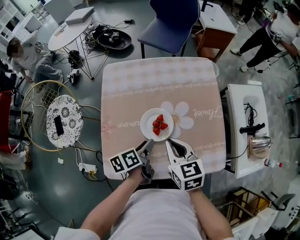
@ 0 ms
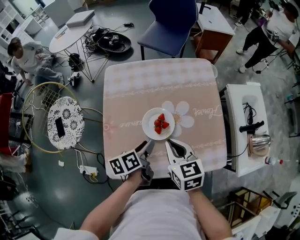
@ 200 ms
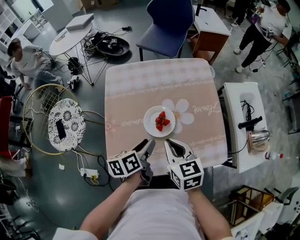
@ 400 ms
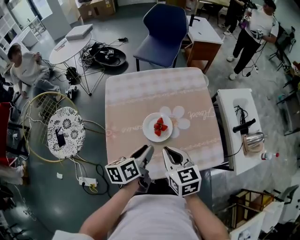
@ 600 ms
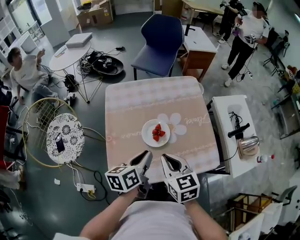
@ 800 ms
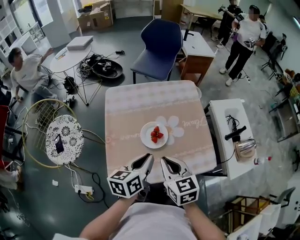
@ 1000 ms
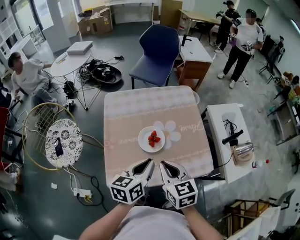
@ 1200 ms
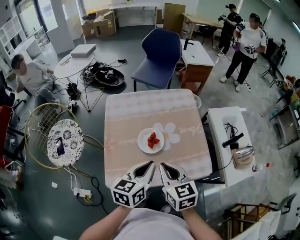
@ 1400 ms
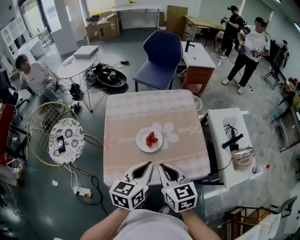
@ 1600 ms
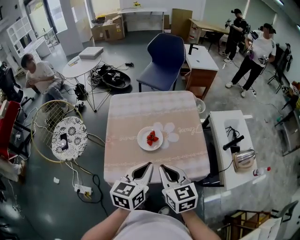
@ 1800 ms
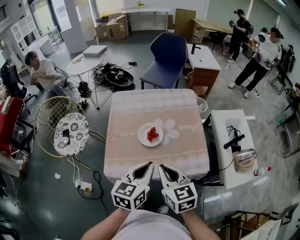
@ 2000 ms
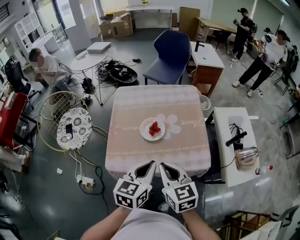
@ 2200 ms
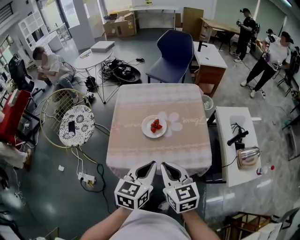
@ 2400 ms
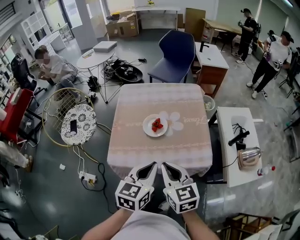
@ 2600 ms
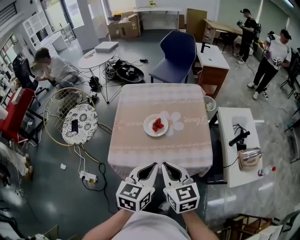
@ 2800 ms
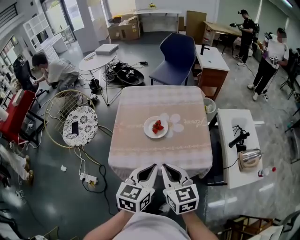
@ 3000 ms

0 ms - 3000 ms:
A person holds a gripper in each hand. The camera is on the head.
0 ms - 1600 ms: The right gripper shifts by approximately 15 cm.
1600 ms - 3000 ms: The right gripper moves roughly 10 cm.

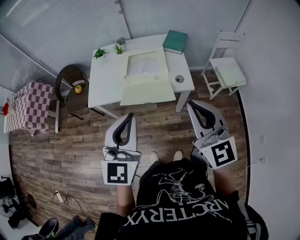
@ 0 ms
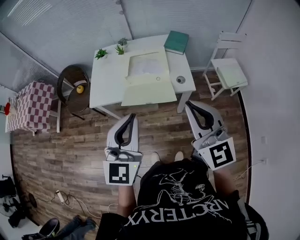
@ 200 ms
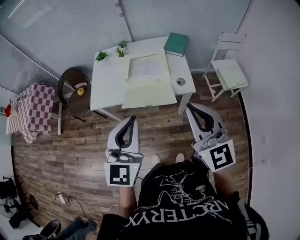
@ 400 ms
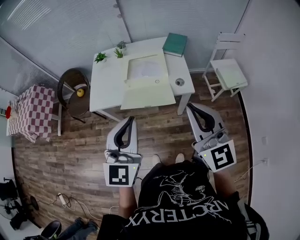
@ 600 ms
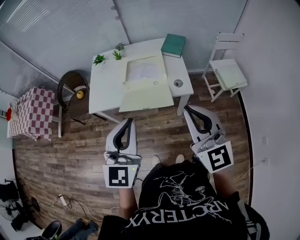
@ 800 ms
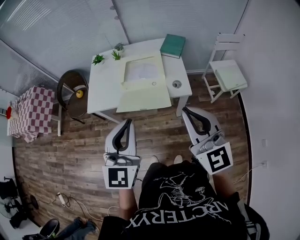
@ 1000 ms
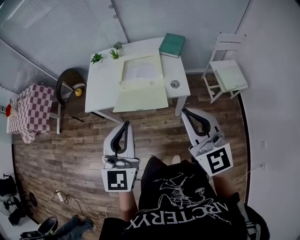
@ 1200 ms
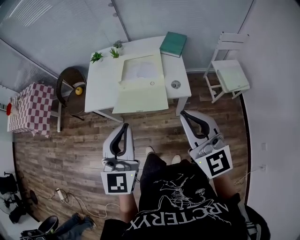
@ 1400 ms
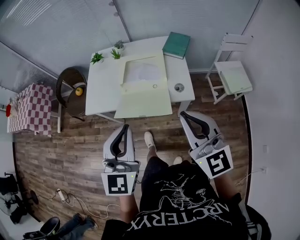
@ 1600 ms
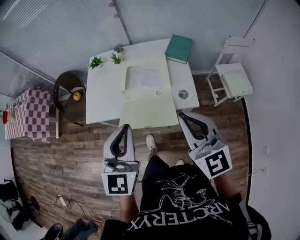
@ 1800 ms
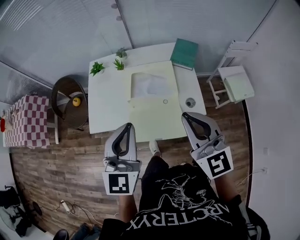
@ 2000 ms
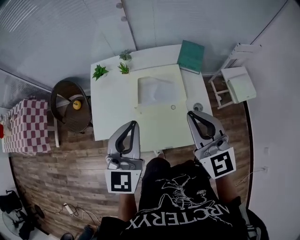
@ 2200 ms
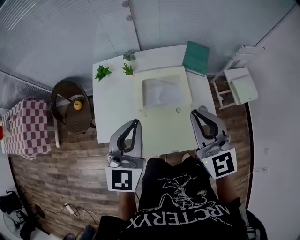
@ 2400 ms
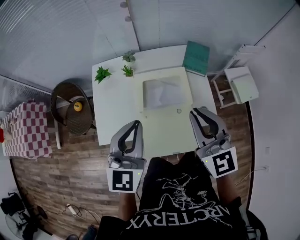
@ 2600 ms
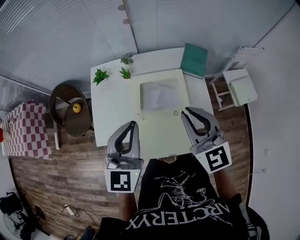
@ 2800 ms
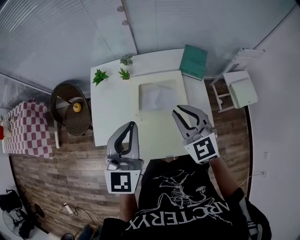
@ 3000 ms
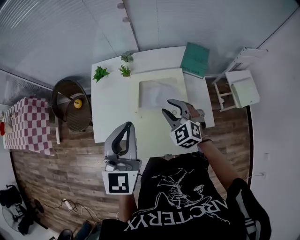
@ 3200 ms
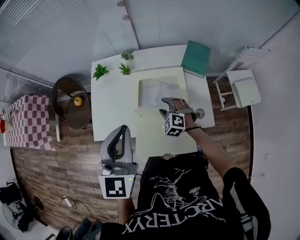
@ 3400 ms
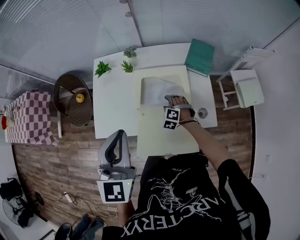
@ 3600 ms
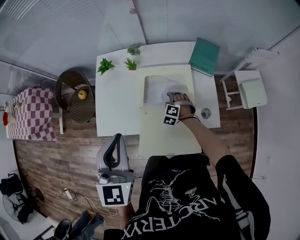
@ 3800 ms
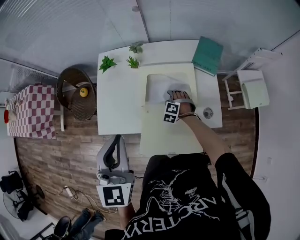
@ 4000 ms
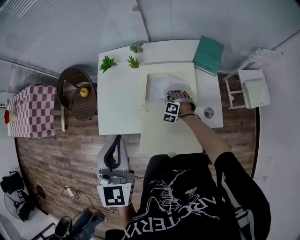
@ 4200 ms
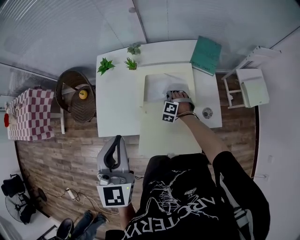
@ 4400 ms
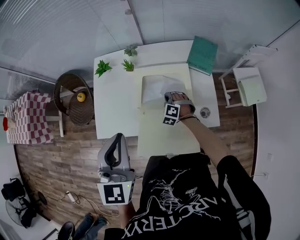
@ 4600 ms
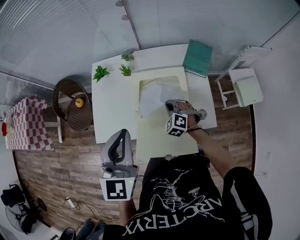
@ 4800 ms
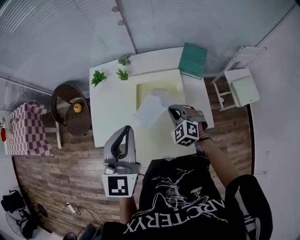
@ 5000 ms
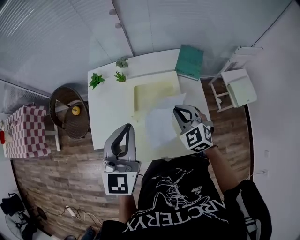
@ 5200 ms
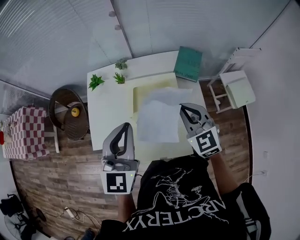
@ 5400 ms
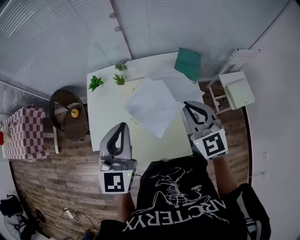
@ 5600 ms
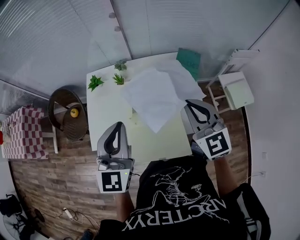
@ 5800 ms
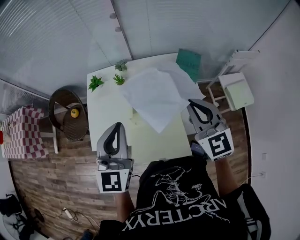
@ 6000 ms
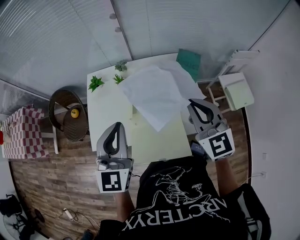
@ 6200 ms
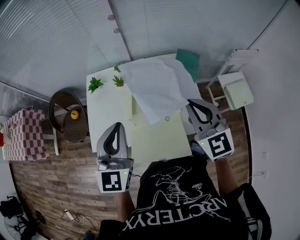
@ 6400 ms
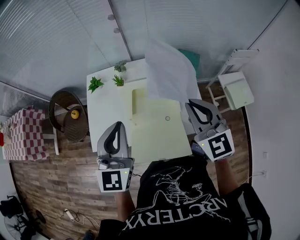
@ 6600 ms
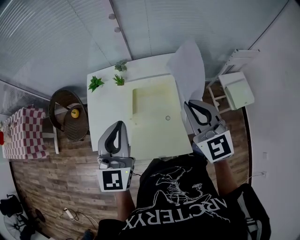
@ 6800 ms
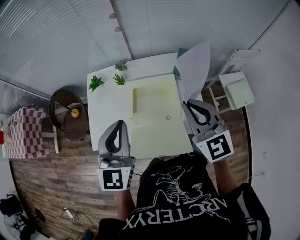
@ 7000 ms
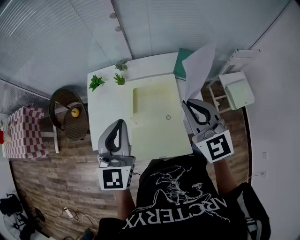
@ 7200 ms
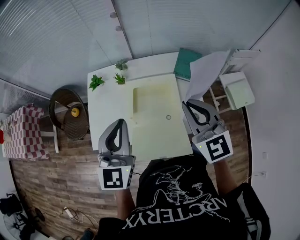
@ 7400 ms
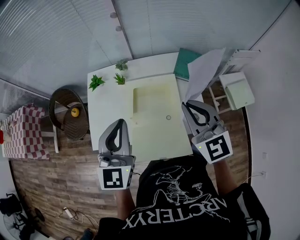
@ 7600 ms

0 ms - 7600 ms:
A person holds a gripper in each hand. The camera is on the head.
0 ms - 1600 ms: The left gripper ends up about 5 cm from where it was. The right gripper shifts roughly 5 cm forward.
1600 ms - 3000 ms: The left gripper goes some 25 cm forward. The right gripper heads forward and to the left, covering approximately 30 cm, and swivels some 20 degrees.
3000 ms - 4600 ms: The right gripper heads downward, covering approximately 30 cm, tips its fingers downward by approximately 30 degrees, and opens, then closes once more.
4600 ms - 6000 ms: The right gripper is displaced upward by some 35 cm, and points its fingers approximately 40 degrees further upward.
6000 ms - 7600 ms: The grippers make only small movements.

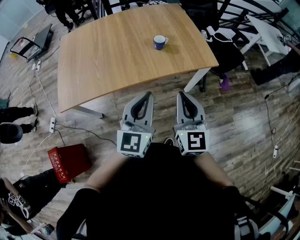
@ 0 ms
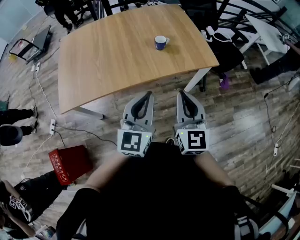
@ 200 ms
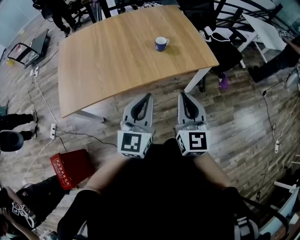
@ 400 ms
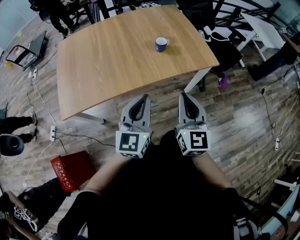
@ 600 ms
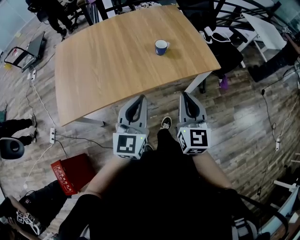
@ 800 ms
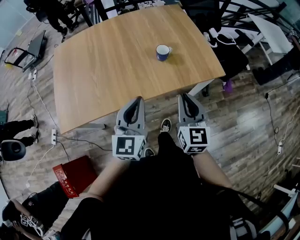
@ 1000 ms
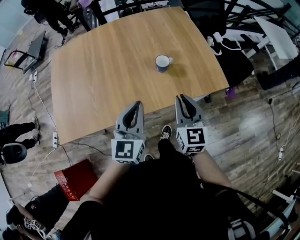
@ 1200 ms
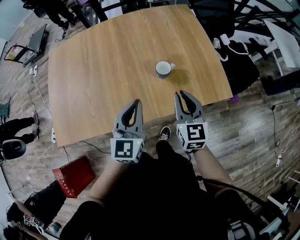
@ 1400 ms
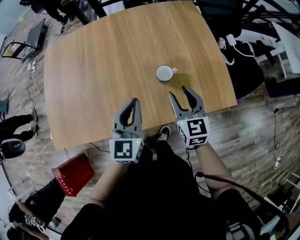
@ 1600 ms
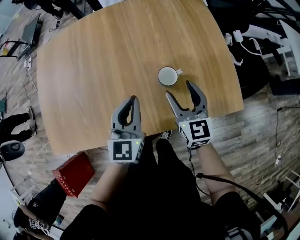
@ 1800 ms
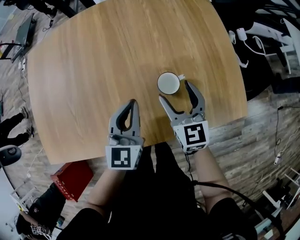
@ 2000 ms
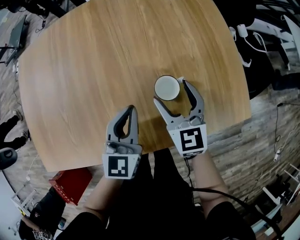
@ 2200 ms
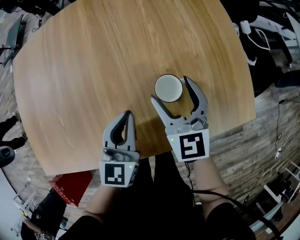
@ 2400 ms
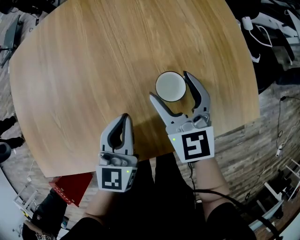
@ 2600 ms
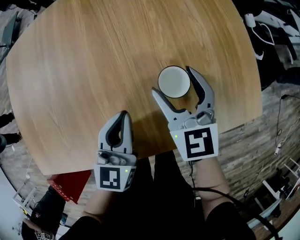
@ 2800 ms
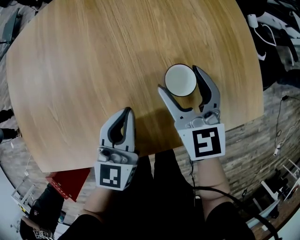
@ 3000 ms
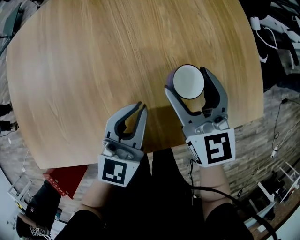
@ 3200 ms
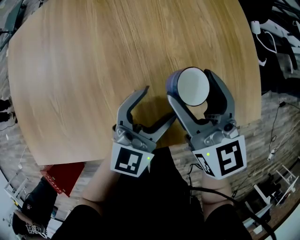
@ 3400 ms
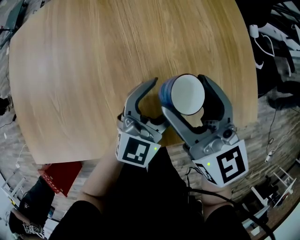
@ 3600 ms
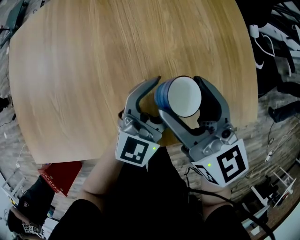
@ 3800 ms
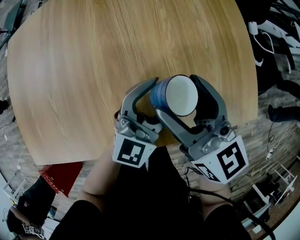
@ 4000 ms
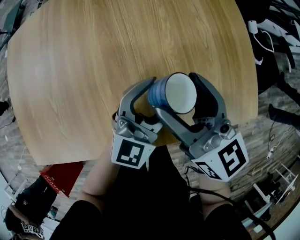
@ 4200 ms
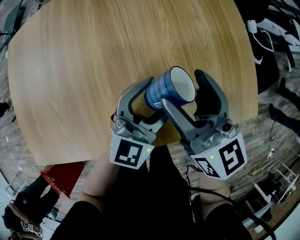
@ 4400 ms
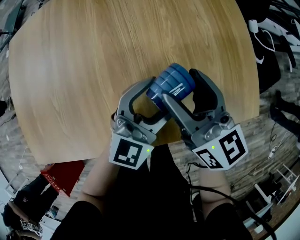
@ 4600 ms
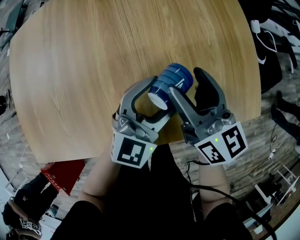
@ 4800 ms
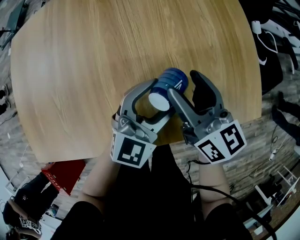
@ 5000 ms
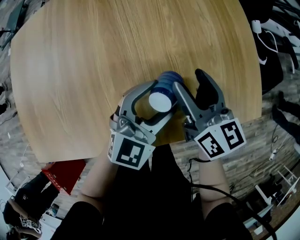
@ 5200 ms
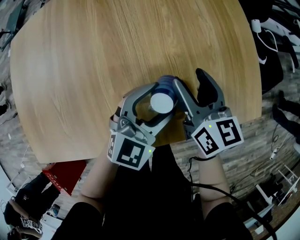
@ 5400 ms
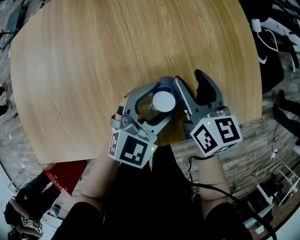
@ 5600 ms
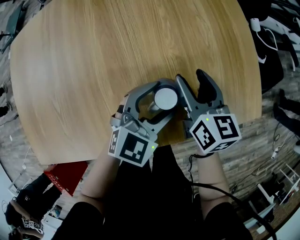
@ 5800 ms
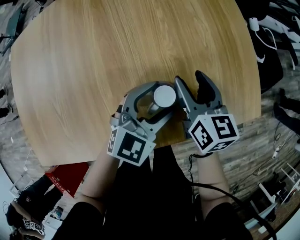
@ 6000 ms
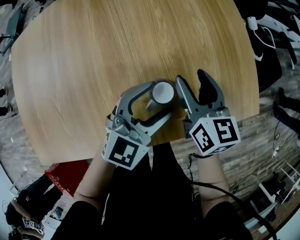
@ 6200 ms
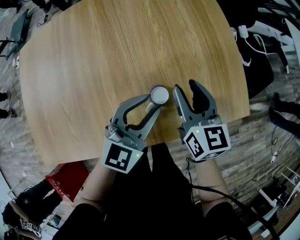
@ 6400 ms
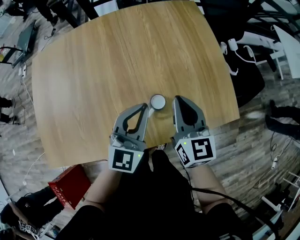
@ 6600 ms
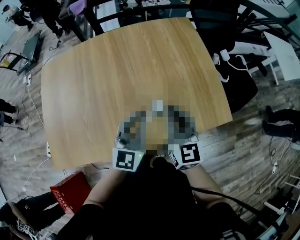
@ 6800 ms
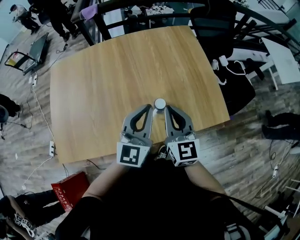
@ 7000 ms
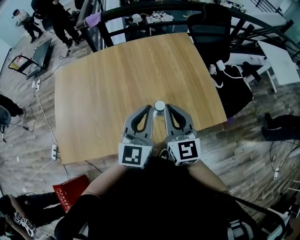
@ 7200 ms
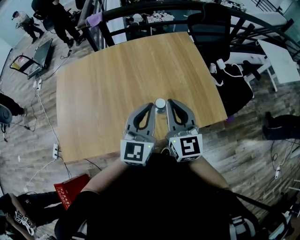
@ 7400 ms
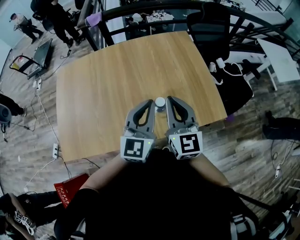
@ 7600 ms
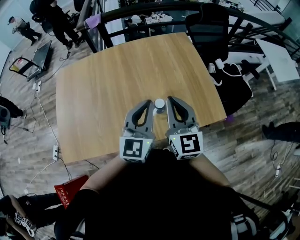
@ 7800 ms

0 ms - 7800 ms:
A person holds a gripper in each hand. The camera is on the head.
0 ms - 1600 ms: The left gripper travels forward by some 35 cm, while the right gripper goes about 40 cm forward and downward, rotates roughly 20 degrees, and opens.
1600 ms - 3200 ms: The right gripper heads forward and downward, covering approximately 15 cm, and opens; the left gripper heads downward and forward, covering some 20 cm.
3200 ms - 4600 ms: The right gripper heads upward, covering approximately 5 cm, and turns by about 20 degrees. Meanwhile the left gripper changes place by roughly 5 cm, and opens its fingers.
4600 ms - 6200 ms: The right gripper moves downward and to the right, approximately 10 cm.
6200 ms - 7800 ms: The right gripper is displaced upward and backward by some 35 cm, turns by roughly 30 degrees, and closes its fingers. Meanwhile the left gripper travels upward by about 30 cm, turns by about 30 degrees, and closes its fingers.

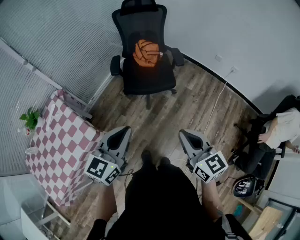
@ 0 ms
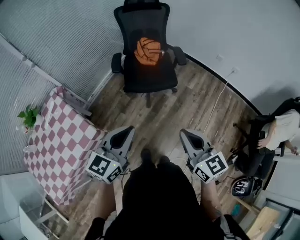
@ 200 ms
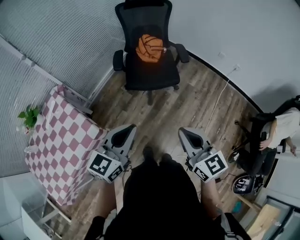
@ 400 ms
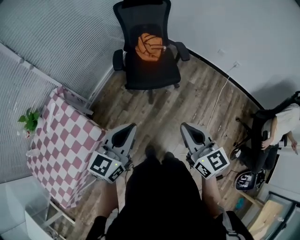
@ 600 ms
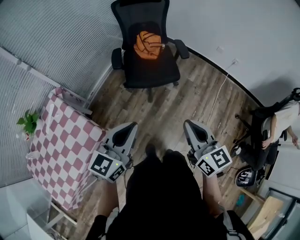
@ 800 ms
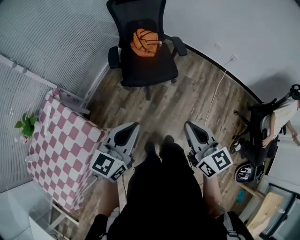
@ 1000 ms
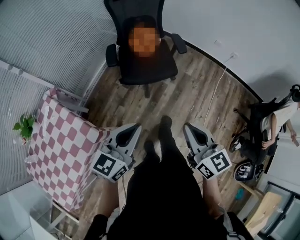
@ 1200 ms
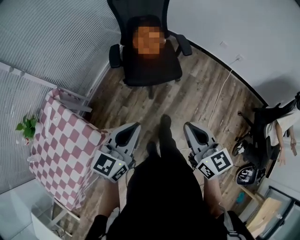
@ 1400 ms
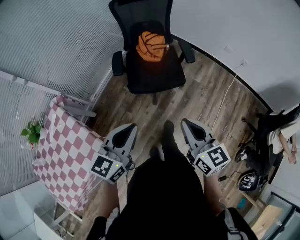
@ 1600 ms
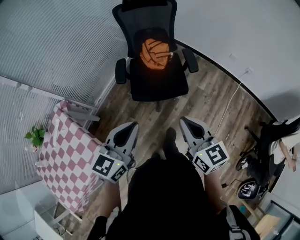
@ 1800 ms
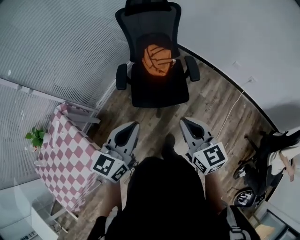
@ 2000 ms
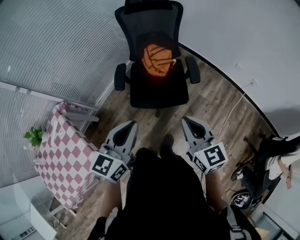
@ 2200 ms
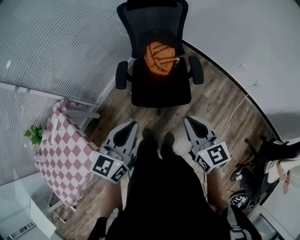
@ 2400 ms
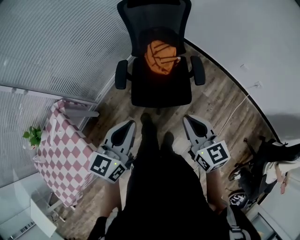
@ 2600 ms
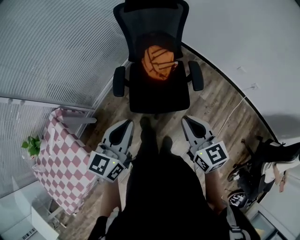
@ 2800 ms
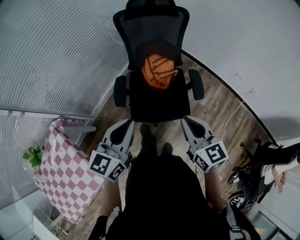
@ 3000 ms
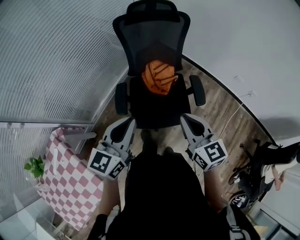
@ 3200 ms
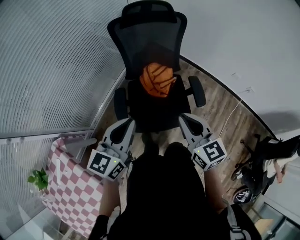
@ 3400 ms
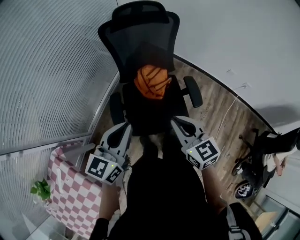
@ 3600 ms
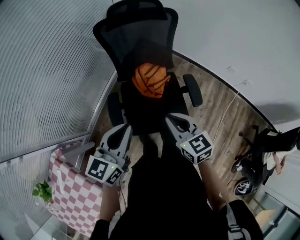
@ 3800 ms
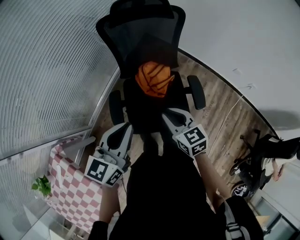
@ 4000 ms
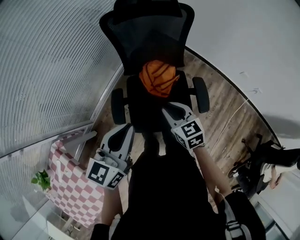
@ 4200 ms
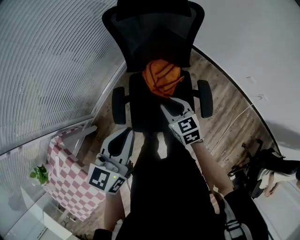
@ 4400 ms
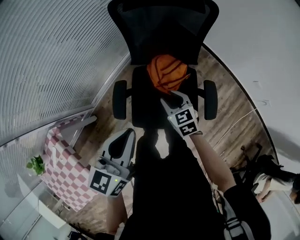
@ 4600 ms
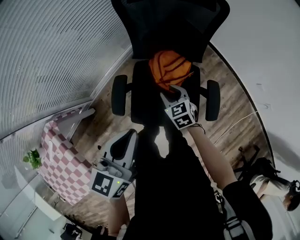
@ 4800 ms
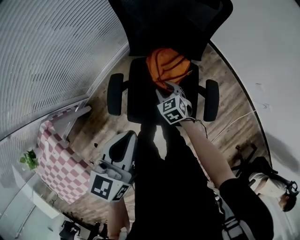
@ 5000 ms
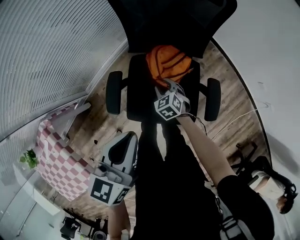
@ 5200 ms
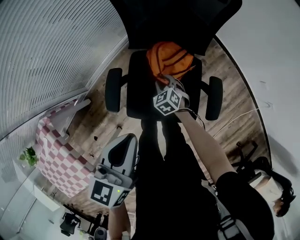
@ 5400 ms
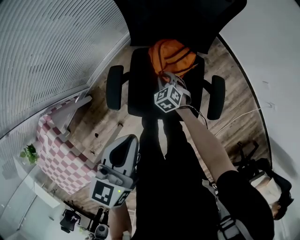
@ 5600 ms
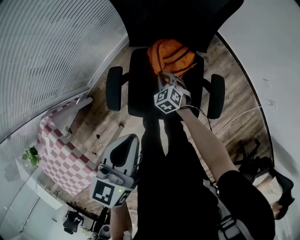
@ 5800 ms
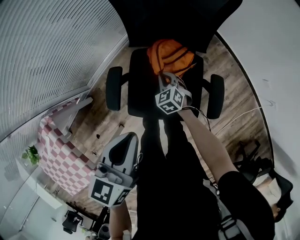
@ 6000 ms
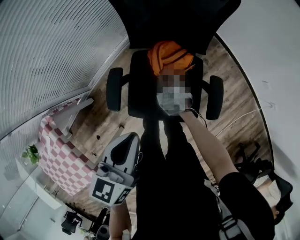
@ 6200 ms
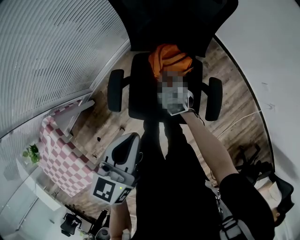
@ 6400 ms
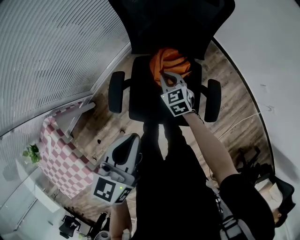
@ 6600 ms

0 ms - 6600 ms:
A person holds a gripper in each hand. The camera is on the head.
0 ms - 1600 ms: Both grippers move forward, some 15 cm.
1600 ms - 3200 ms: The grippers both shift forward by approximately 35 cm.
3200 ms - 5000 ms: The right gripper moves downward and forward, roughly 40 cm, angles its fingers downward, by roughly 30 degrees, and opens up. Meanwhile the left gripper shifts about 20 cm forward and downward, and changes its angle by some 20 degrees.
5000 ms - 6600 ms: The right gripper reaches some 10 cm downward, then returns, and closes.
